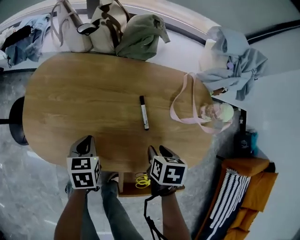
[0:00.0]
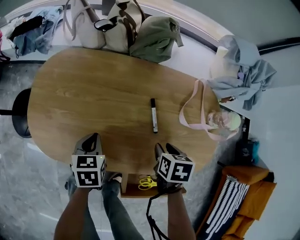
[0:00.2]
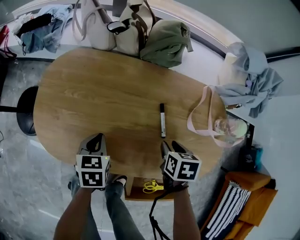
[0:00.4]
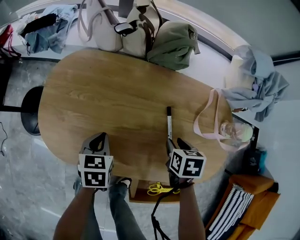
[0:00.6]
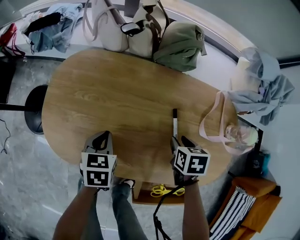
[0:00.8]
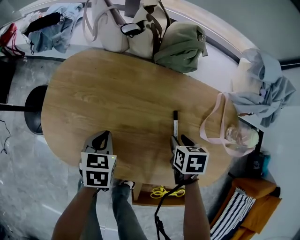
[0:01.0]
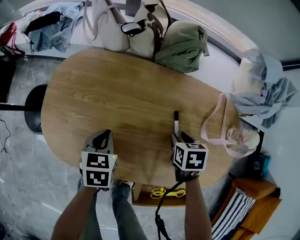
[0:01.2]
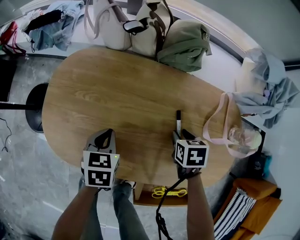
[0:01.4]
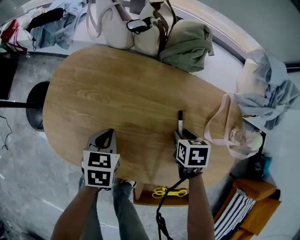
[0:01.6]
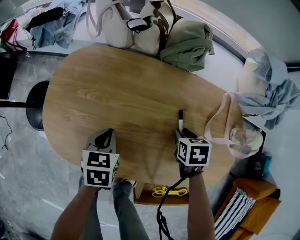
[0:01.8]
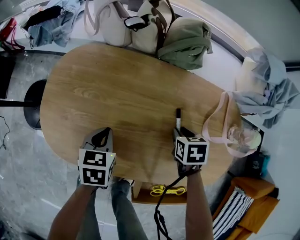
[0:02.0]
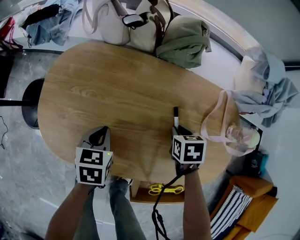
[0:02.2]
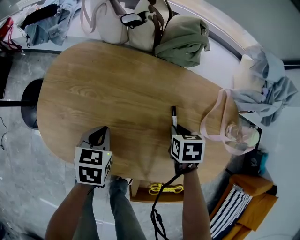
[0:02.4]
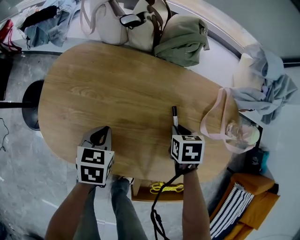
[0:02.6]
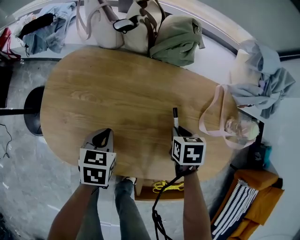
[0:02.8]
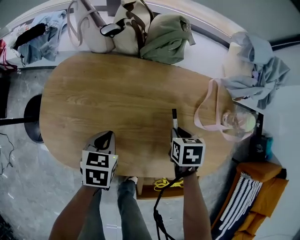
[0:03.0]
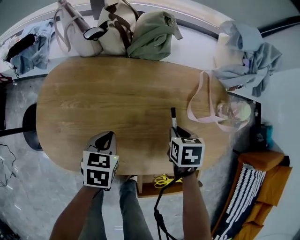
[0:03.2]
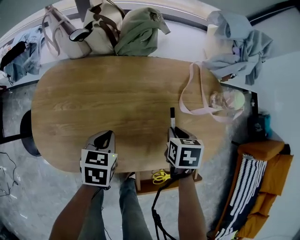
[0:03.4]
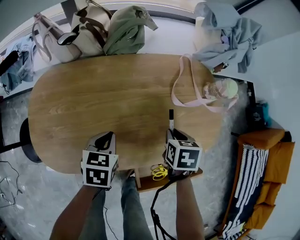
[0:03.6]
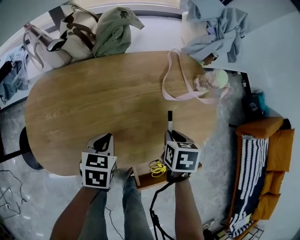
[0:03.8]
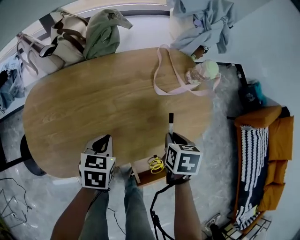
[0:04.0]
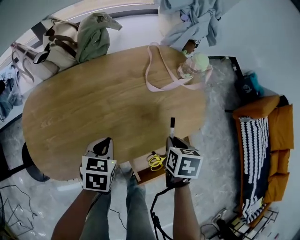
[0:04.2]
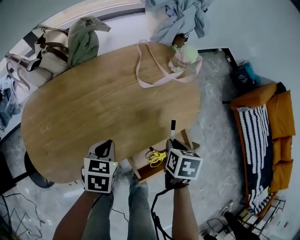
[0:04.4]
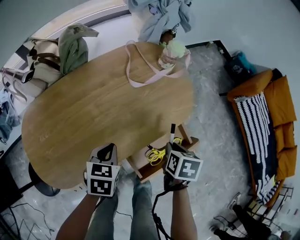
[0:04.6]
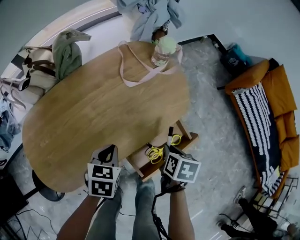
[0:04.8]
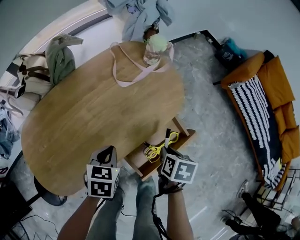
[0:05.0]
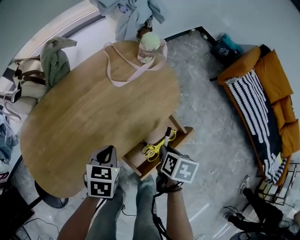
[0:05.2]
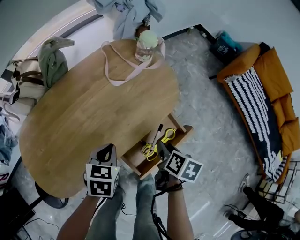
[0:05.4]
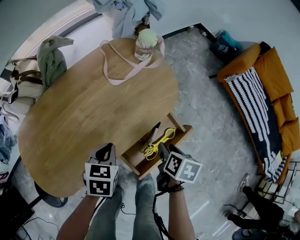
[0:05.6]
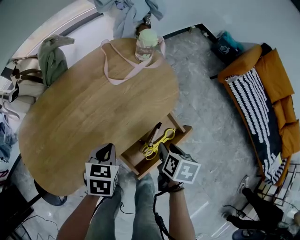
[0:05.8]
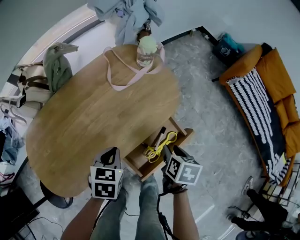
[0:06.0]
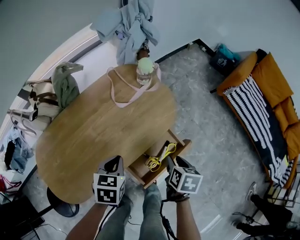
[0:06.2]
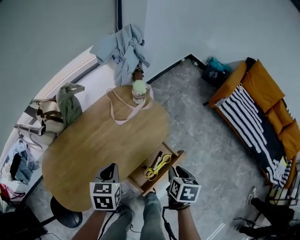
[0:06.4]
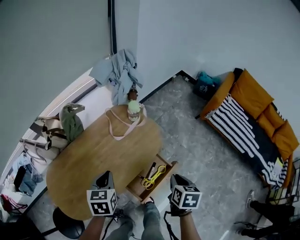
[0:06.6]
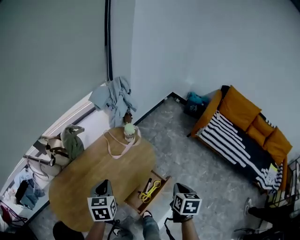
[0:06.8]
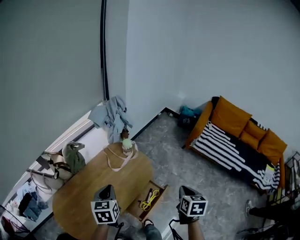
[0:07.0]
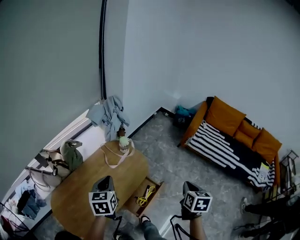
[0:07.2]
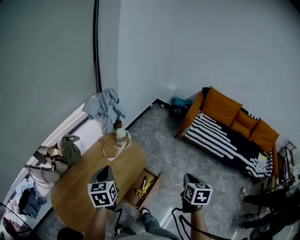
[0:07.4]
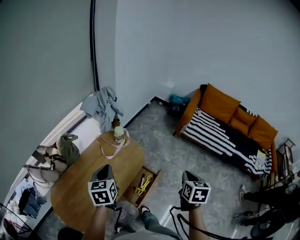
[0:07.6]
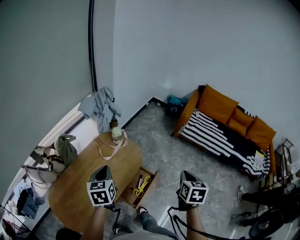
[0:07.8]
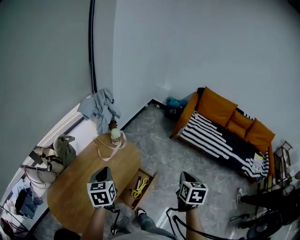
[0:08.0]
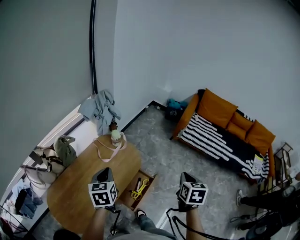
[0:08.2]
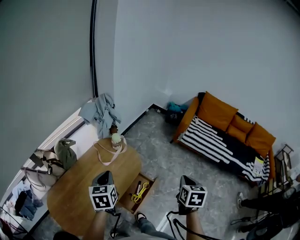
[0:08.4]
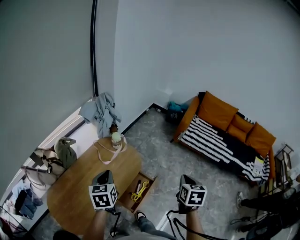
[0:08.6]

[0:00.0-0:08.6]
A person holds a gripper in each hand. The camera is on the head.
0:00.0 to 0:01.4: The right gripper shifts approximately 15 cm forward and downward. Meanwhile the left gripper shifts roughly 5 cm forward.
0:01.4 to 0:02.8: There are only small adjustments of the grippers.
0:02.8 to 0:04.4: The left gripper shifts by roughly 15 cm, and swivels approximately 40 degrees. Meanwhile the right gripper changes place by roughly 25 cm, and twists approximately 40 degrees clockwise, seen from behind.
0:04.4 to 0:05.8: The left gripper heads to the right, covering some 5 cm; the right gripper heads to the right and backward, covering about 10 cm, rotates about 20 degrees, and opens its fingers.
0:05.8 to 0:07.2: Both grippers move upward, approximately 35 cm. The right gripper rotates roughly 30 degrees, and closes its fingers. The left gripper rotates roughly 30 degrees.
0:07.2 to 0:08.6: The grippers make only small movements.

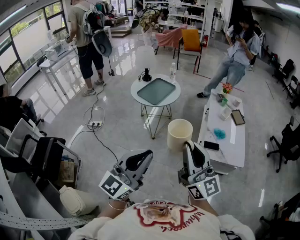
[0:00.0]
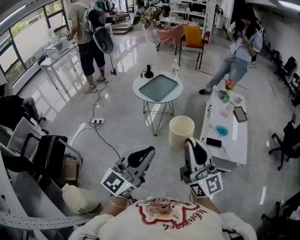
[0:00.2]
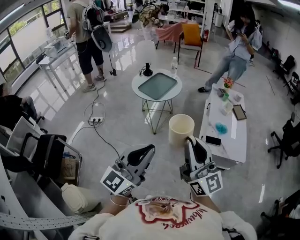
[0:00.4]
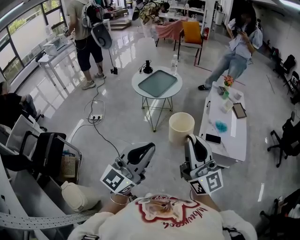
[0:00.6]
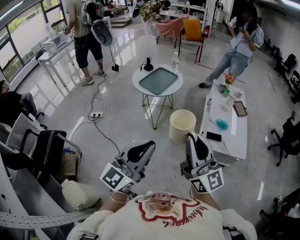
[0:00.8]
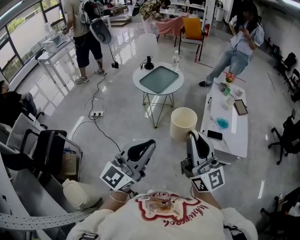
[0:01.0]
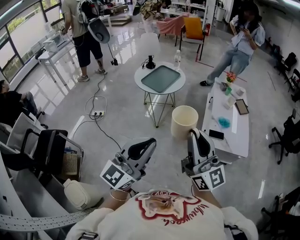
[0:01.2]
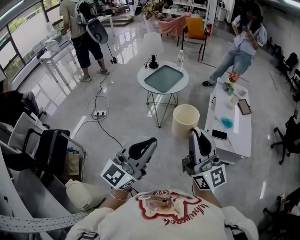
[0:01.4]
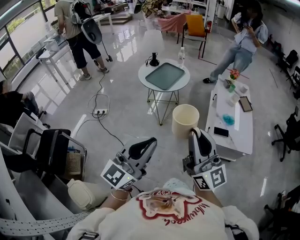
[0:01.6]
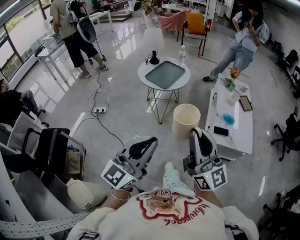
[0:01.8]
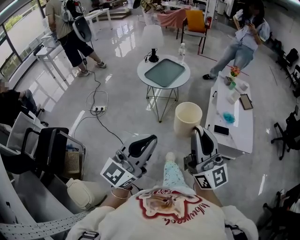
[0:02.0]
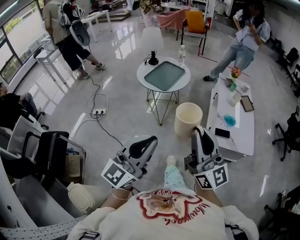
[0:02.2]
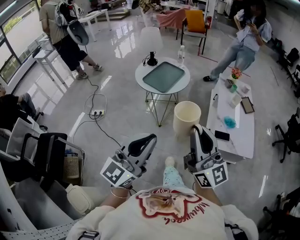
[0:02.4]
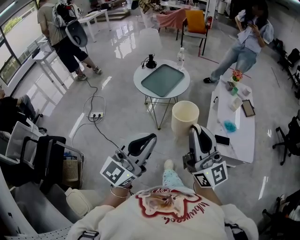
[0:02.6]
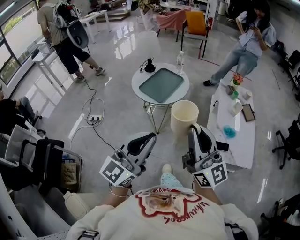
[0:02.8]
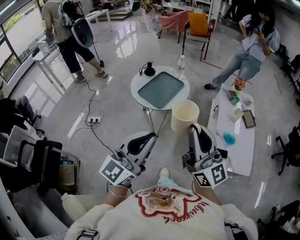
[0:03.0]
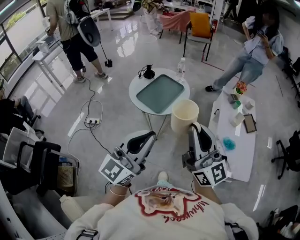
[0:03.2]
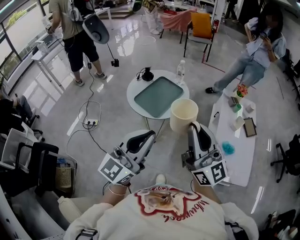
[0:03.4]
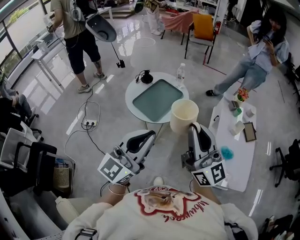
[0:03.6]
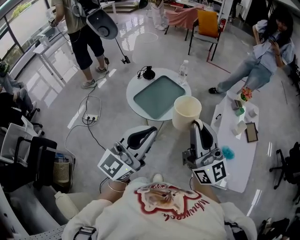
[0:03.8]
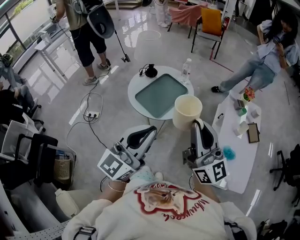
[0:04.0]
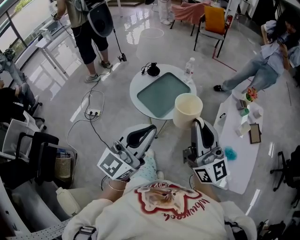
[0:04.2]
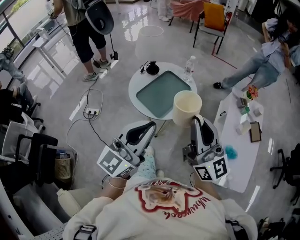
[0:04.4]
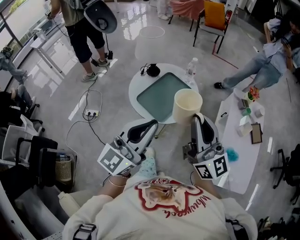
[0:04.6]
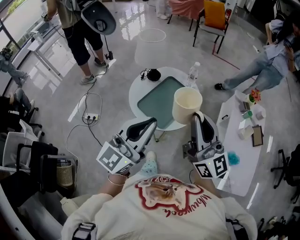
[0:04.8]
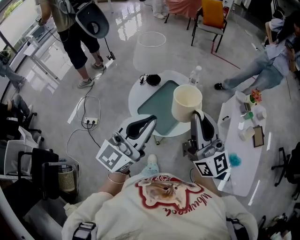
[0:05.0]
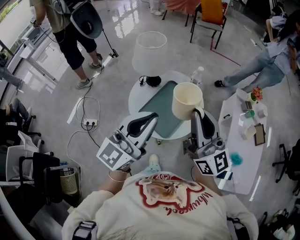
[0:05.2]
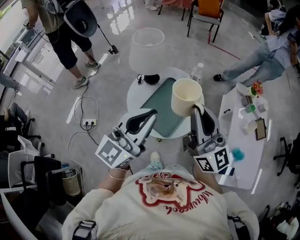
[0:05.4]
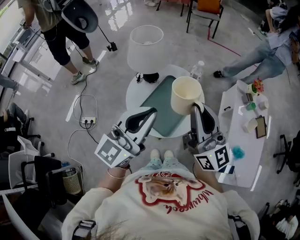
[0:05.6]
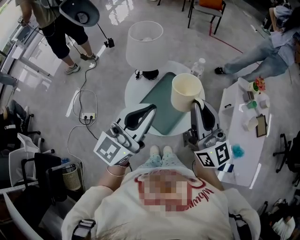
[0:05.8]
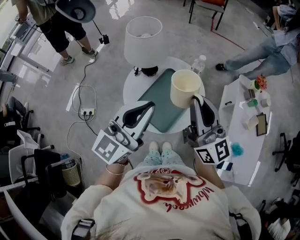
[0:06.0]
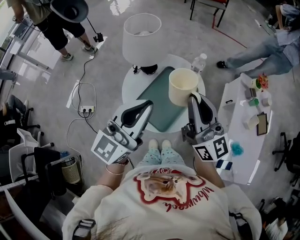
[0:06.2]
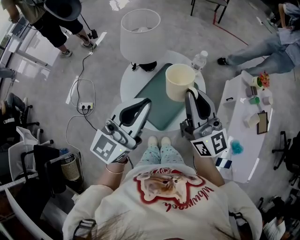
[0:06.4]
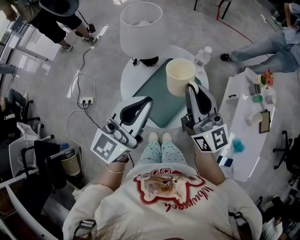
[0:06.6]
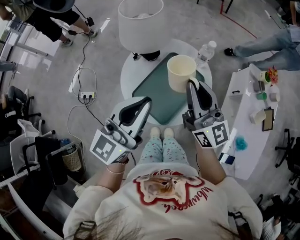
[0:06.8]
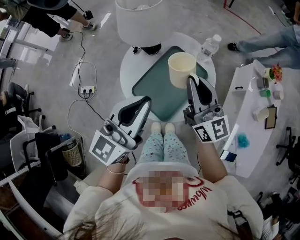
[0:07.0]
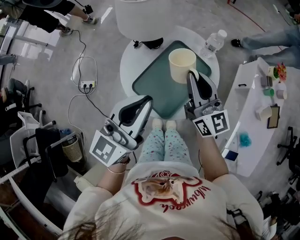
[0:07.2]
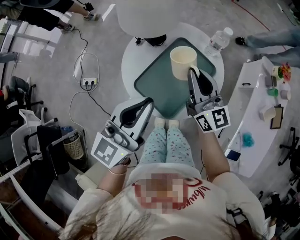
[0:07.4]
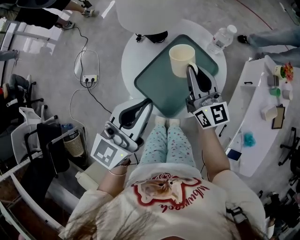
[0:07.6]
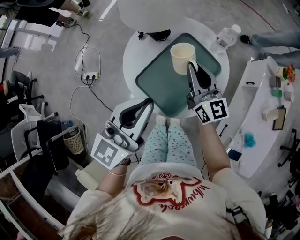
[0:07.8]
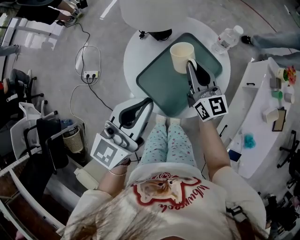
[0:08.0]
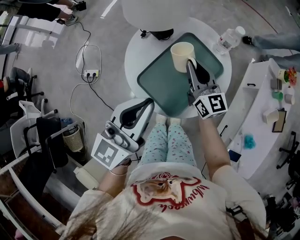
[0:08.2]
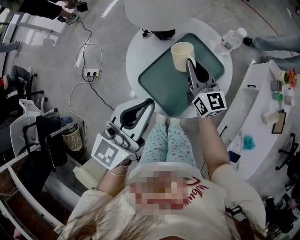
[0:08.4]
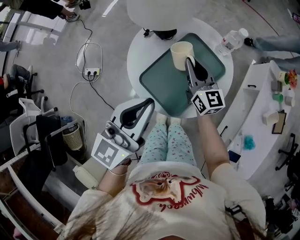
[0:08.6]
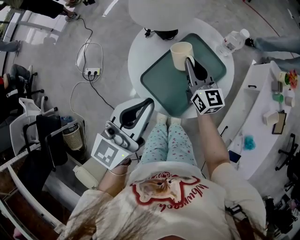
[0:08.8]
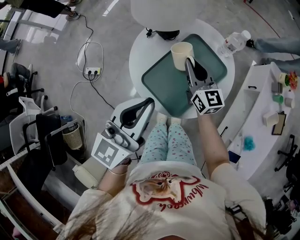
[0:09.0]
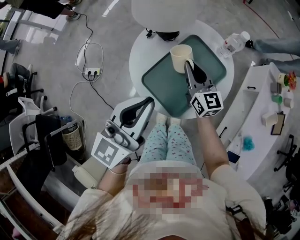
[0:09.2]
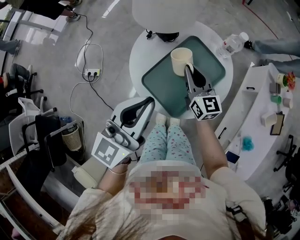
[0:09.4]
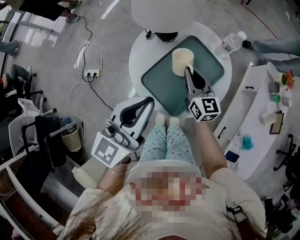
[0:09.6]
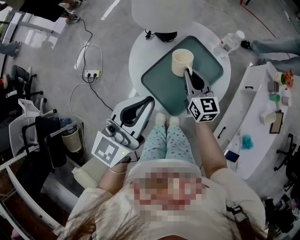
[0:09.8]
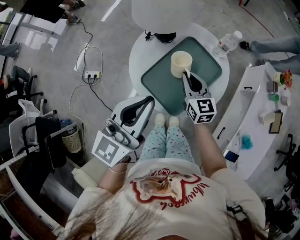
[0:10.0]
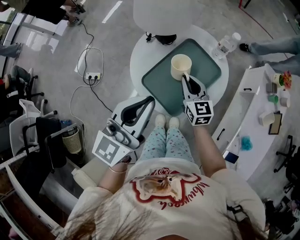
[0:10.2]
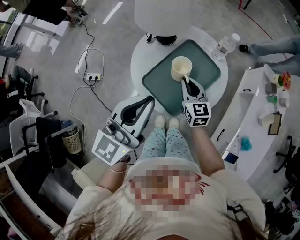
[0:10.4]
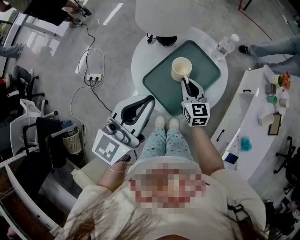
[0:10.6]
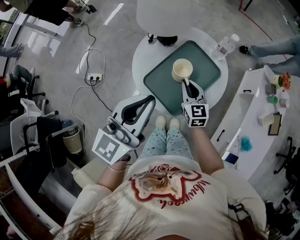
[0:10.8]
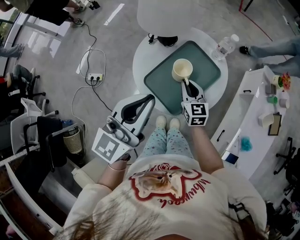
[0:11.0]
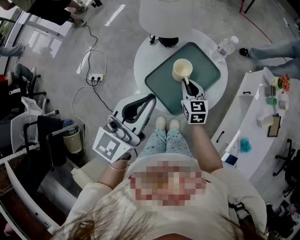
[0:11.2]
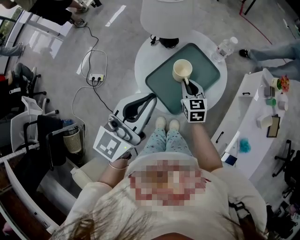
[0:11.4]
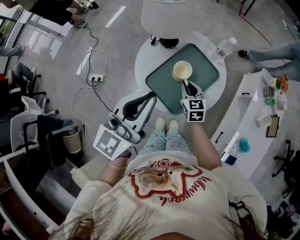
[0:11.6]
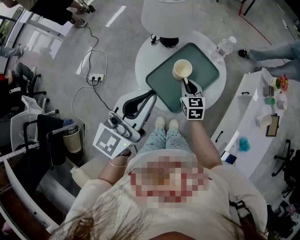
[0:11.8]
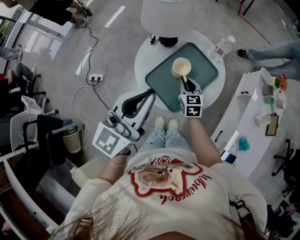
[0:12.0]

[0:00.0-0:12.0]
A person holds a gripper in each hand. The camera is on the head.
0:00.0 to 0:01.6: The grippers both shift to the left by about 5 cm.
0:01.6 to 0:03.0: The two grippers go roughly 20 cm forward.
0:03.0 to 0:04.4: The two grippers go some 20 cm forward.
0:04.4 to 0:06.0: The two grippers go some 20 cm forward.
0:06.0 to 0:07.6: The right gripper travels downward and forward by some 25 cm, while the left gripper shifts about 10 cm downward.
0:07.6 to 0:09.0: The right gripper goes about 5 cm downward.
0:09.0 to 0:10.4: The right gripper travels backward by some 5 cm.
0:10.4 to 0:12.0: There are only small adjustments of the grippers.

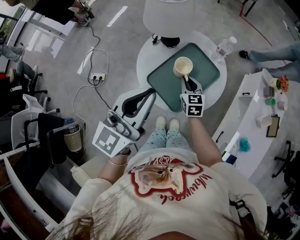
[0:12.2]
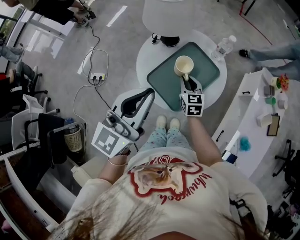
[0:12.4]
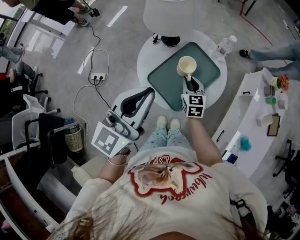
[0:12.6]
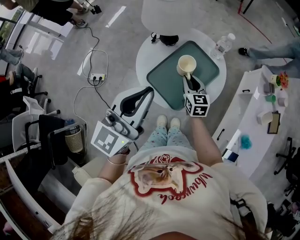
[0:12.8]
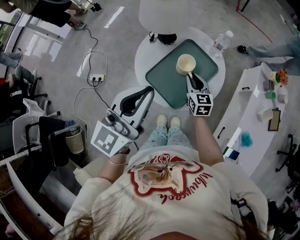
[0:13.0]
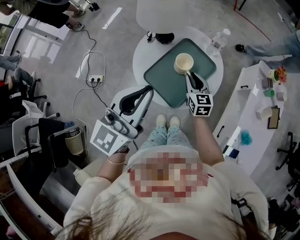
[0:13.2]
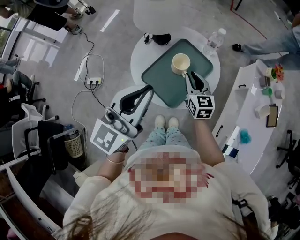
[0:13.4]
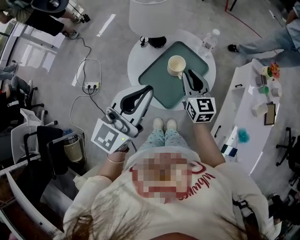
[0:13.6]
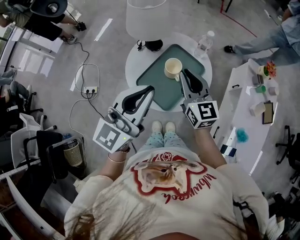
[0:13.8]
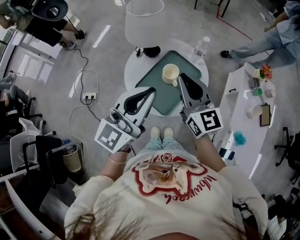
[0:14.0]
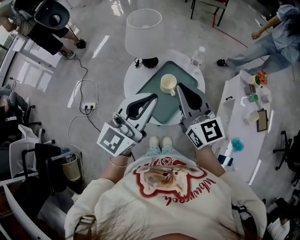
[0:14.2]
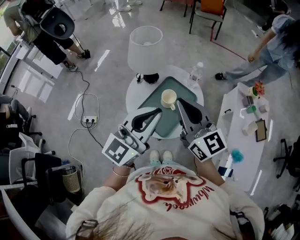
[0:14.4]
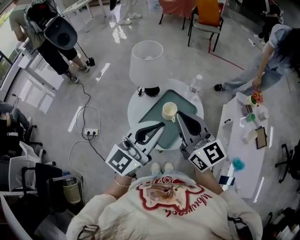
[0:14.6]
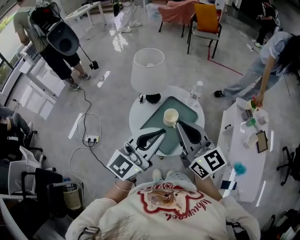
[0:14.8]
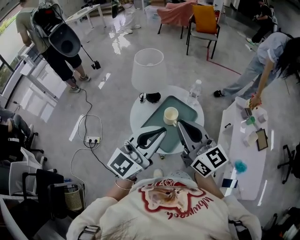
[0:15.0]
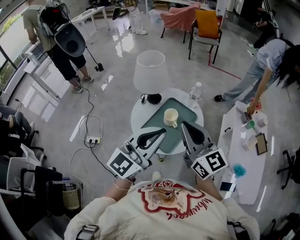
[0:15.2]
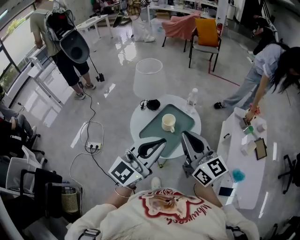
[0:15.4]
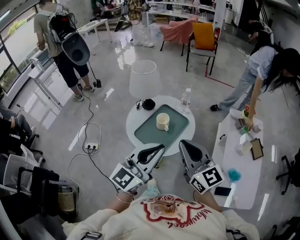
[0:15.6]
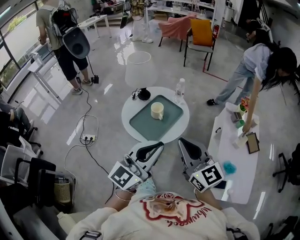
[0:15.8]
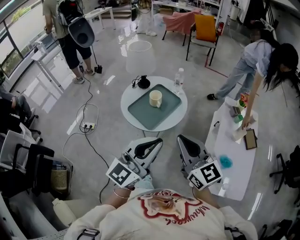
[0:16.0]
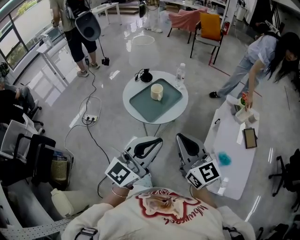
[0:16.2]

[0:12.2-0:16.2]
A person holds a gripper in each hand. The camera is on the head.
0:12.2 to 0:13.6: The right gripper travels upward by about 15 cm.
0:13.6 to 0:14.8: The right gripper is displaced upward and backward by some 20 cm, and turns by about 20 degrees.
0:14.8 to 0:16.2: The two grippers go some 30 cm backward and to the right.
